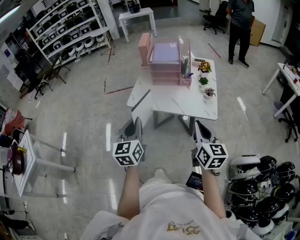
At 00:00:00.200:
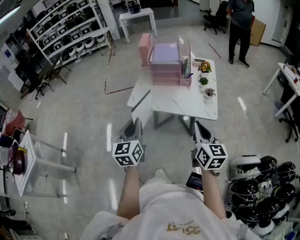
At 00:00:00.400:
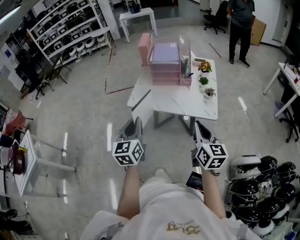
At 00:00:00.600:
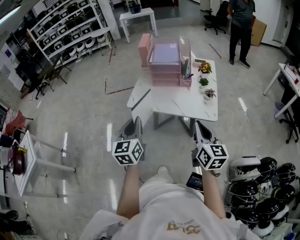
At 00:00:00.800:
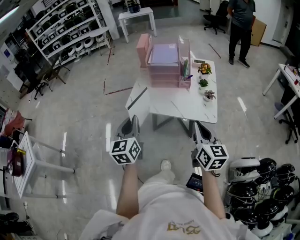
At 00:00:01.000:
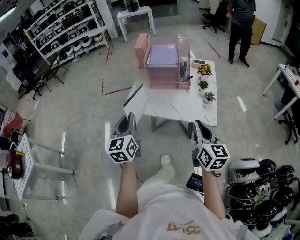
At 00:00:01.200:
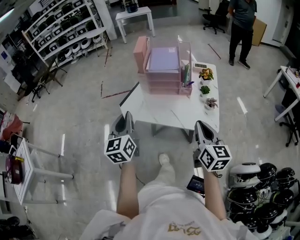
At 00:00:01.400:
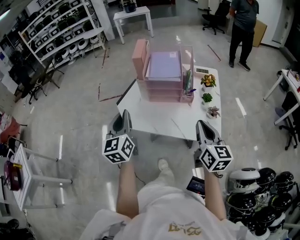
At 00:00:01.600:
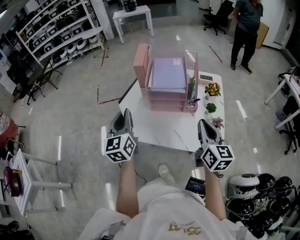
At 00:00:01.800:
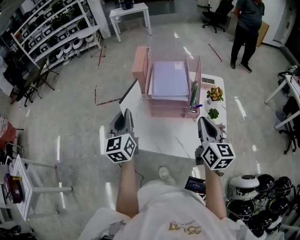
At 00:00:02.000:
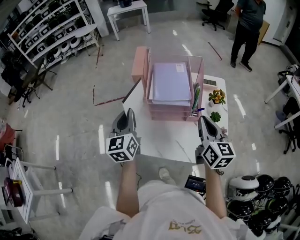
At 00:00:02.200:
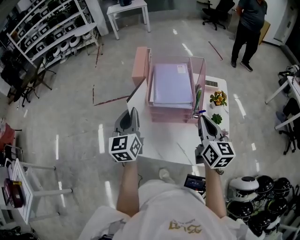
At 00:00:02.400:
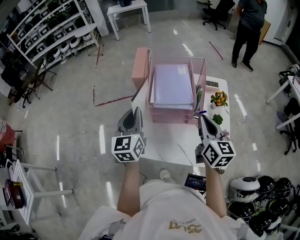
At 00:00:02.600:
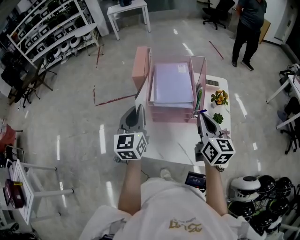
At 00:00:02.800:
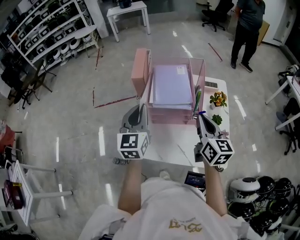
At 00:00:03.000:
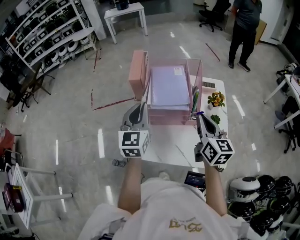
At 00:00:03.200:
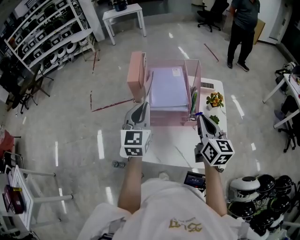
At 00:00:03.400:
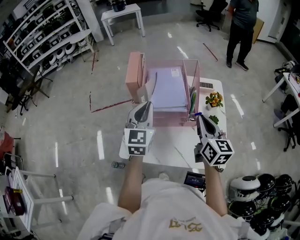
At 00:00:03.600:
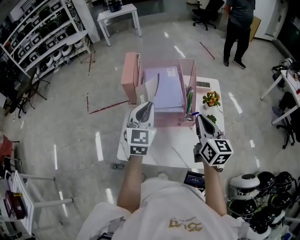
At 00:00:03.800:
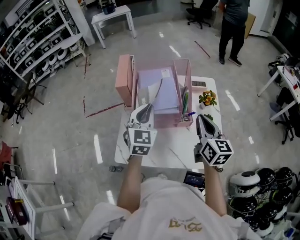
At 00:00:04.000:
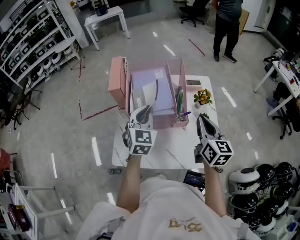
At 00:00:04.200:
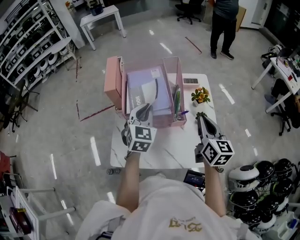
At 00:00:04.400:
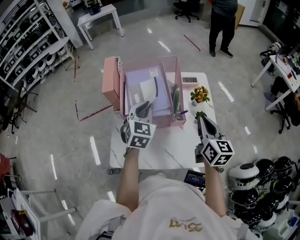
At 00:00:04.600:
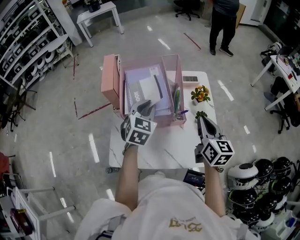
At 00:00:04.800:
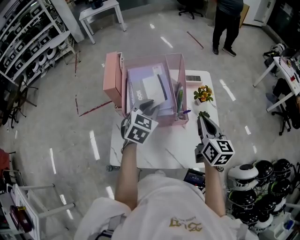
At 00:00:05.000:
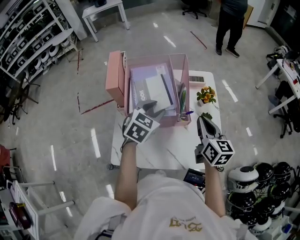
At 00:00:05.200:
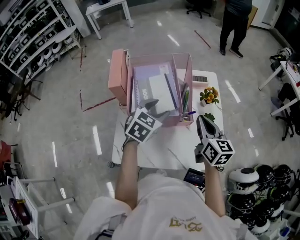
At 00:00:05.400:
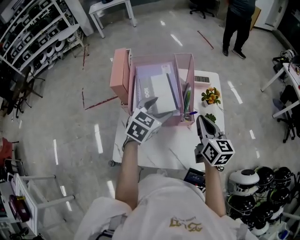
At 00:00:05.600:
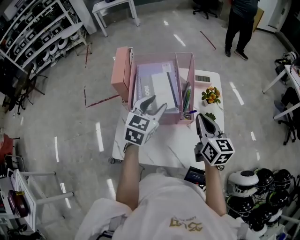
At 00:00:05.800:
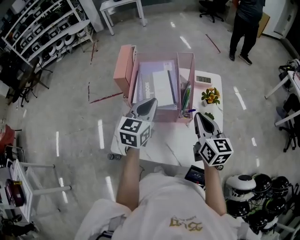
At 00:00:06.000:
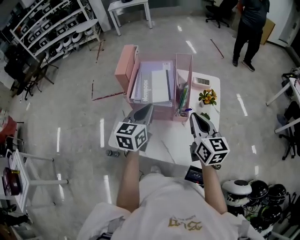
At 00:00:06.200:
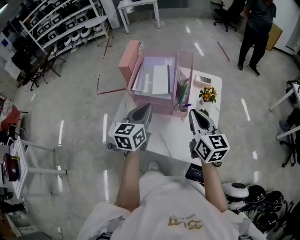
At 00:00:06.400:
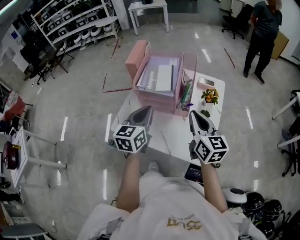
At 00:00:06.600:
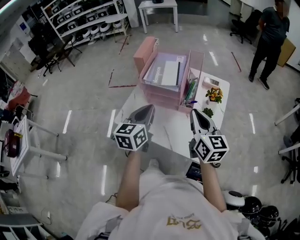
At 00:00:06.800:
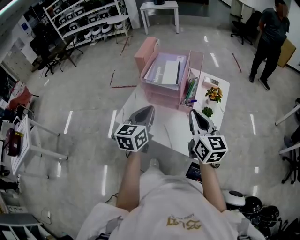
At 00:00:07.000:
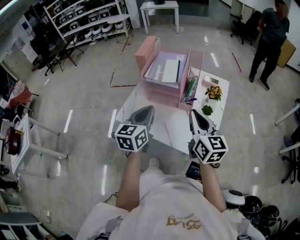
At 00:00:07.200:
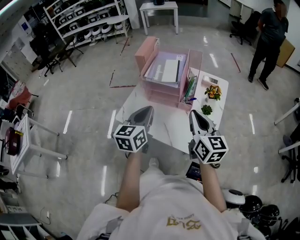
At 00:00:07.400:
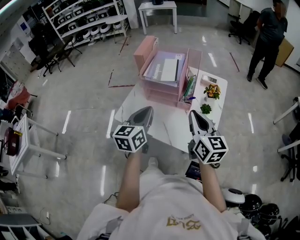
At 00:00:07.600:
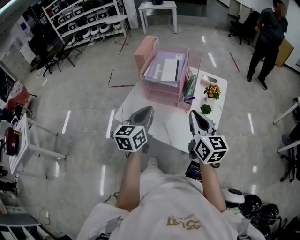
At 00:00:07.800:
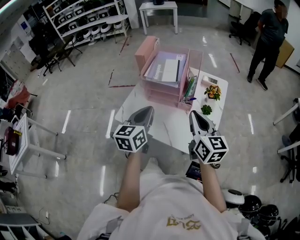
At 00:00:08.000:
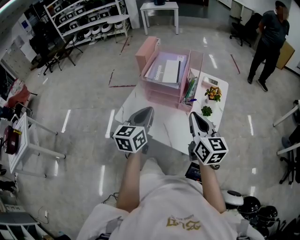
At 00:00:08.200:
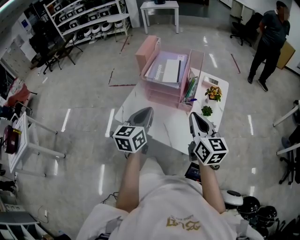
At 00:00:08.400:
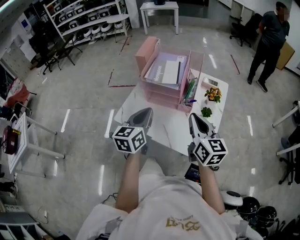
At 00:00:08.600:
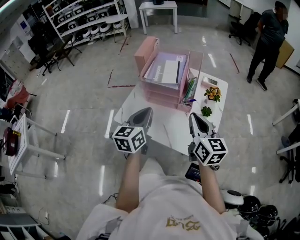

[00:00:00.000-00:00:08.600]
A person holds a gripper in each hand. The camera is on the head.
00:00:00.000 to 00:00:01.400: Both grippers move forward, approximately 20 cm.
00:00:01.400 to 00:00:02.800: Both grippers travel together forward, roughly 20 cm.
00:00:02.800 to 00:00:04.400: The left gripper travels to the right, forward and downward by some 15 cm, and turns by some 30 degrees; the right gripper travels to the right by about 10 cm.
00:00:04.400 to 00:00:05.800: The left gripper rotates some 20 degrees, and opens, then closes once more.
00:00:05.800 to 00:00:07.200: Both grippers move backward, some 15 cm. The left gripper turns by some 20 degrees.
00:00:07.200 to 00:00:08.600: Both grippers stay about where they are.

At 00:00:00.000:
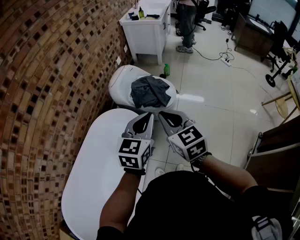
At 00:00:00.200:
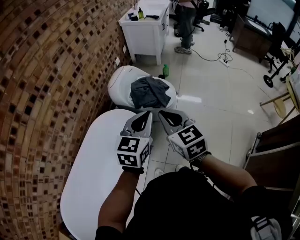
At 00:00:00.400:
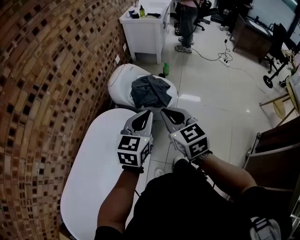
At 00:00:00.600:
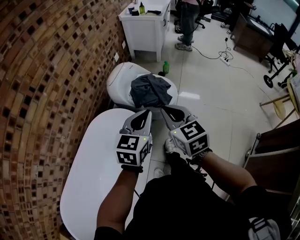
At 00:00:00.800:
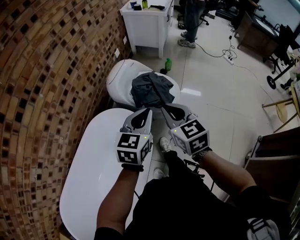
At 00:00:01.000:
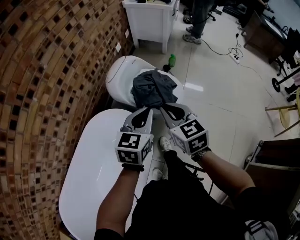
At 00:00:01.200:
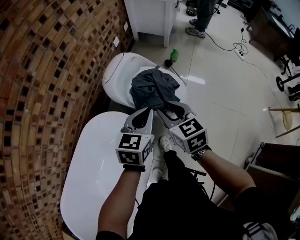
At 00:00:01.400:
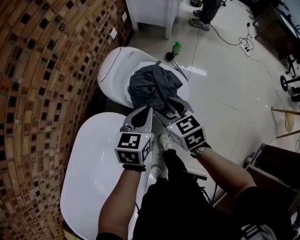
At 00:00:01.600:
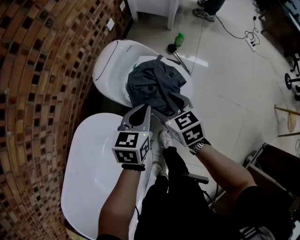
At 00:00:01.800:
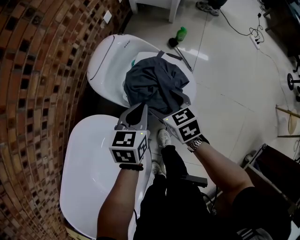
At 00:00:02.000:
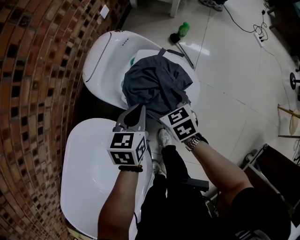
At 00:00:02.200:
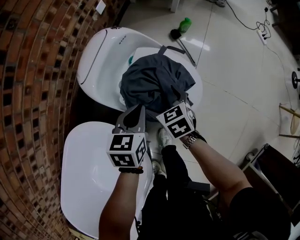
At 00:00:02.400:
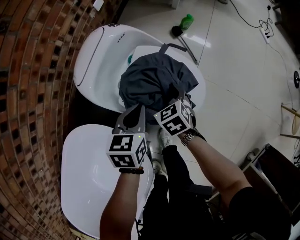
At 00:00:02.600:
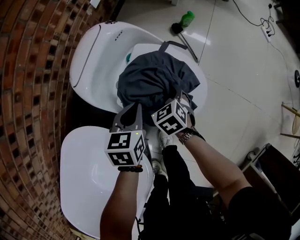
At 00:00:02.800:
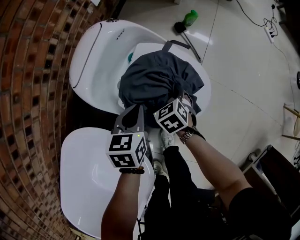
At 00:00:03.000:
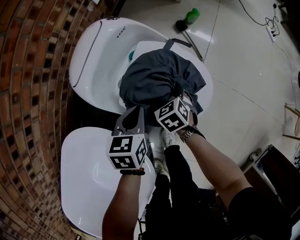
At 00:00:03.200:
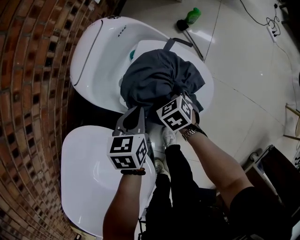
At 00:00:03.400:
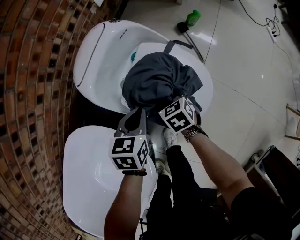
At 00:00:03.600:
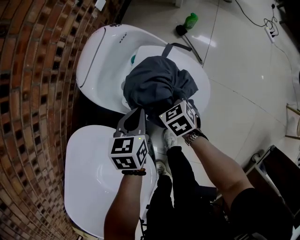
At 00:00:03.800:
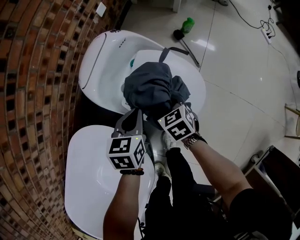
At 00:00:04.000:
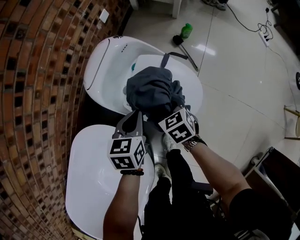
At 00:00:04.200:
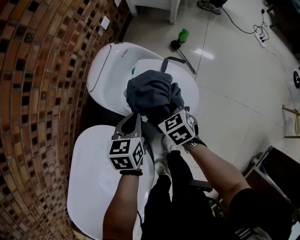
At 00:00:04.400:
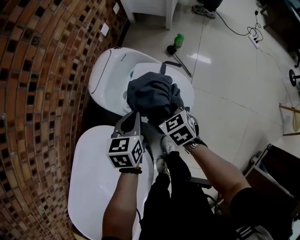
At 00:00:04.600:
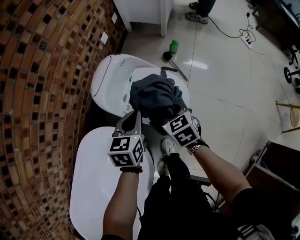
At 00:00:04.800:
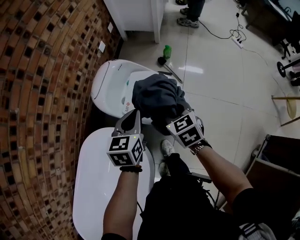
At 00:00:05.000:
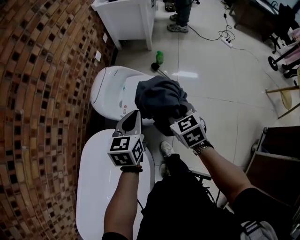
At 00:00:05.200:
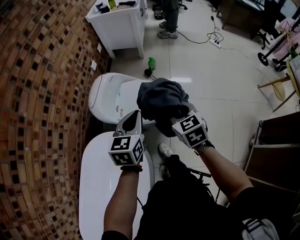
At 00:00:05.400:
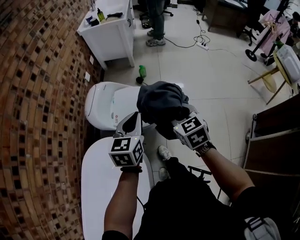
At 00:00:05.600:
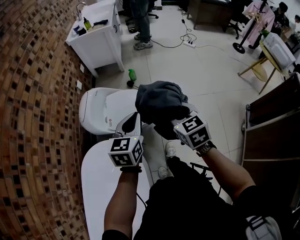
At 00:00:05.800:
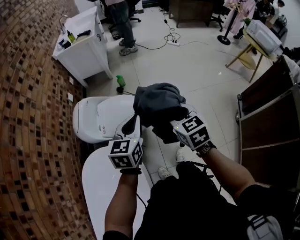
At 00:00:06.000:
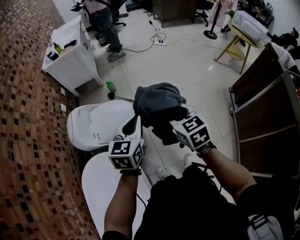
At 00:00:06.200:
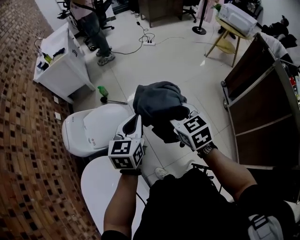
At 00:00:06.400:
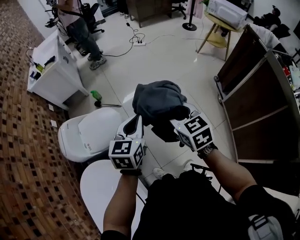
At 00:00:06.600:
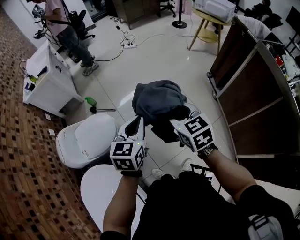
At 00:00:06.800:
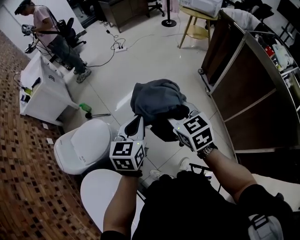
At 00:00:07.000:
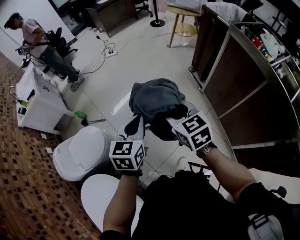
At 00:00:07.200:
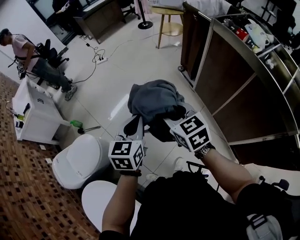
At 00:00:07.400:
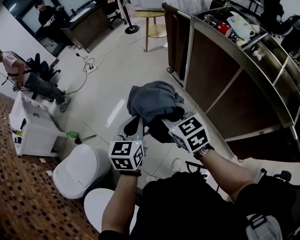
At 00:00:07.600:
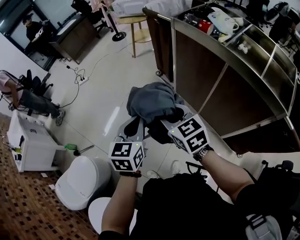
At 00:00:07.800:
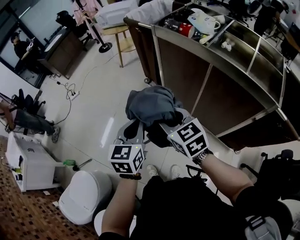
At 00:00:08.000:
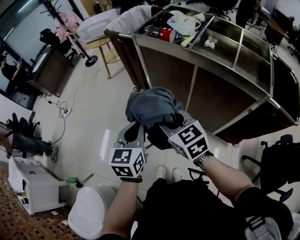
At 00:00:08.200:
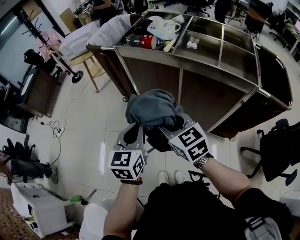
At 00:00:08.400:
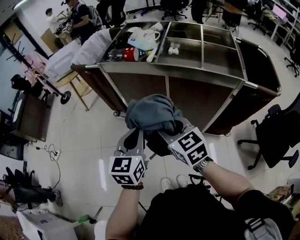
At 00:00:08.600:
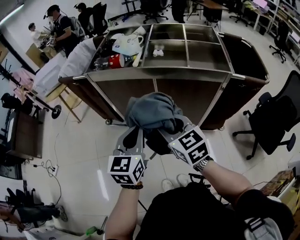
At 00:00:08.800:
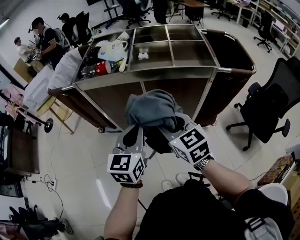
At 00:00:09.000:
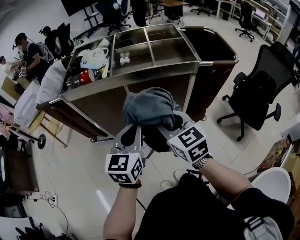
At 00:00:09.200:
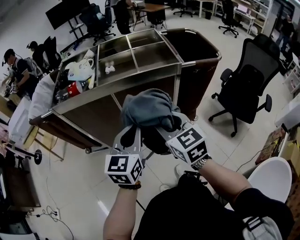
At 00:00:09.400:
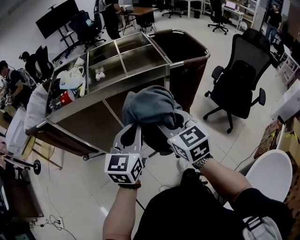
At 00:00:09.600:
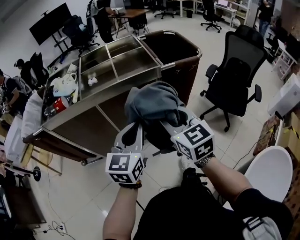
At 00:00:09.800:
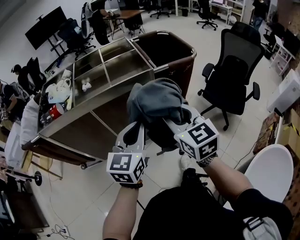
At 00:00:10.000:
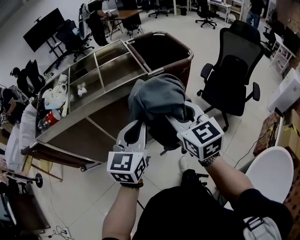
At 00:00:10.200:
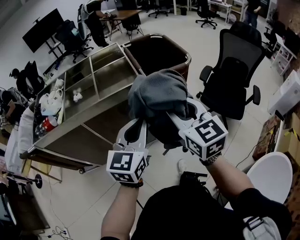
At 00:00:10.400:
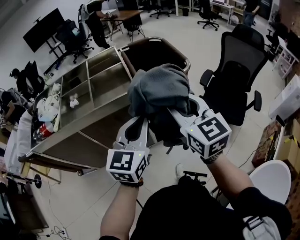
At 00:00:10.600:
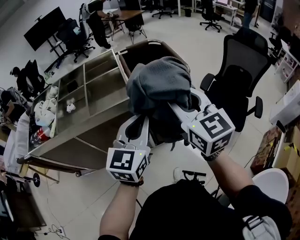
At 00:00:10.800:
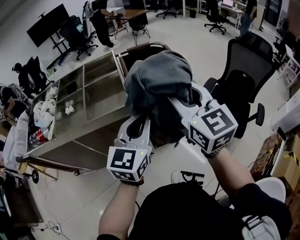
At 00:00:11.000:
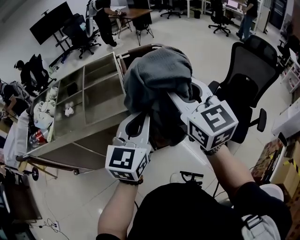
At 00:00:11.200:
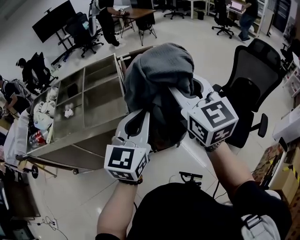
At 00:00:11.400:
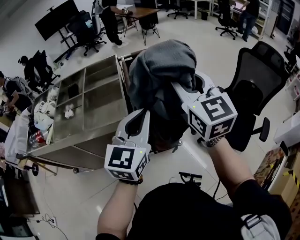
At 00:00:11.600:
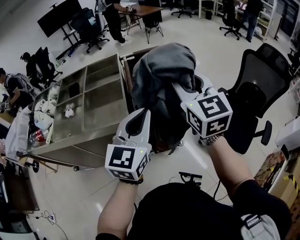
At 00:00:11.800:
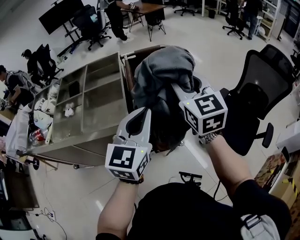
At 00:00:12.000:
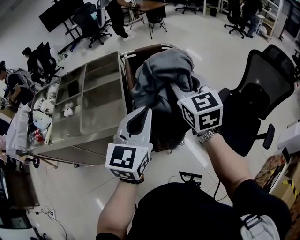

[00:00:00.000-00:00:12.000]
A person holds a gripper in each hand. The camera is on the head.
00:00:00.000 to 00:00:01.600: The pair of grippers is taken forward, some 70 cm. The left gripper turns by about 40 degrees, while the right gripper is displaced downward by about 30 cm, angles its fingers downward, by roughly 30 degrees, and opens up.
00:00:01.600 to 00:00:03.000: Both grippers move downward, approximately 35 cm. The right gripper tips its fingers downward by roughly 30 degrees.
00:00:03.000 to 00:00:04.400: Both grippers move upward, about 30 cm. The right gripper closes up.
00:00:04.400 to 00:00:06.000: The two grippers travel together, roughly 50 cm. The left gripper swivels some 50 degrees. Meanwhile the right gripper turns by approximately 40 degrees.
00:00:06.000 to 00:00:07.600: The pair of grippers is taken roughly 50 cm. The left gripper changes its angle by roughly 40 degrees. Meanwhile the right gripper changes its angle by roughly 40 degrees.
00:00:07.600 to 00:00:09.000: The right gripper changes place by roughly 25 cm, and rotates about 50 degrees; the left gripper moves about 30 cm, and changes its angle by some 50 degrees.
00:00:09.000 to 00:00:10.400: Both grippers move to the right, approximately 30 cm. The right gripper changes its angle by some 20 degrees; the left gripper changes its angle by roughly 20 degrees.
00:00:10.400 to 00:00:12.000: The two grippers go approximately 30 cm forward and to the right.

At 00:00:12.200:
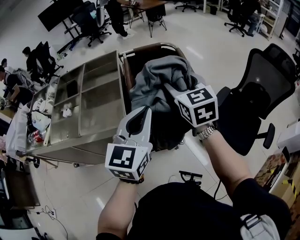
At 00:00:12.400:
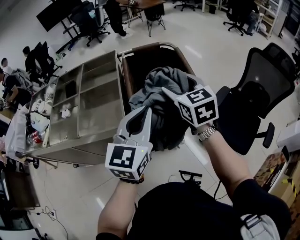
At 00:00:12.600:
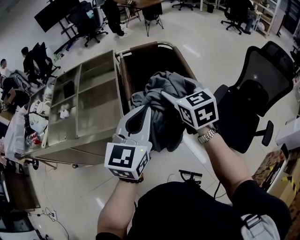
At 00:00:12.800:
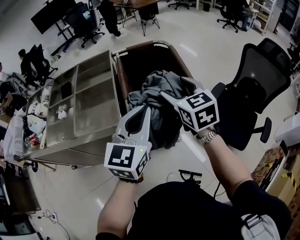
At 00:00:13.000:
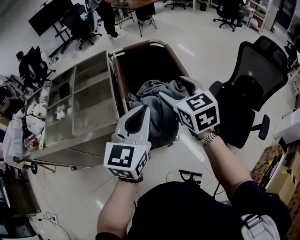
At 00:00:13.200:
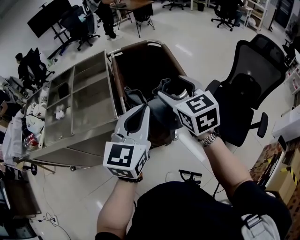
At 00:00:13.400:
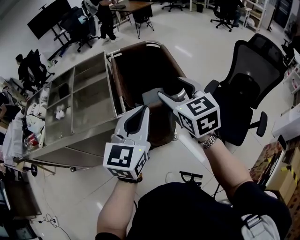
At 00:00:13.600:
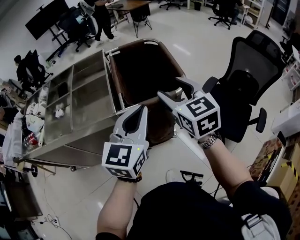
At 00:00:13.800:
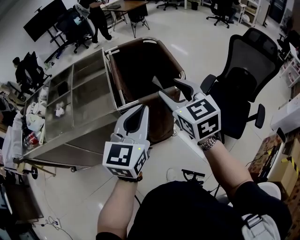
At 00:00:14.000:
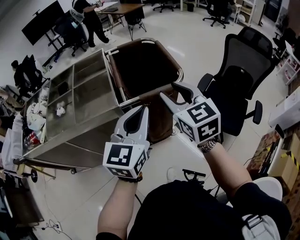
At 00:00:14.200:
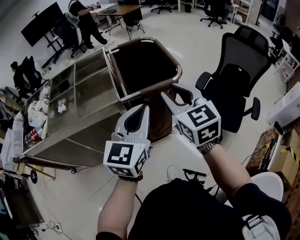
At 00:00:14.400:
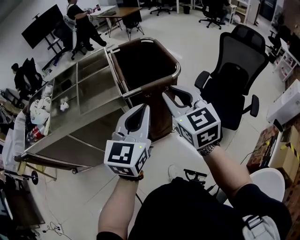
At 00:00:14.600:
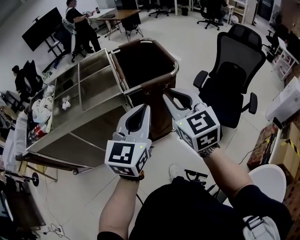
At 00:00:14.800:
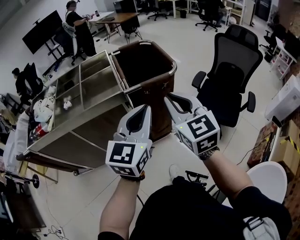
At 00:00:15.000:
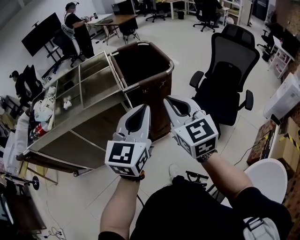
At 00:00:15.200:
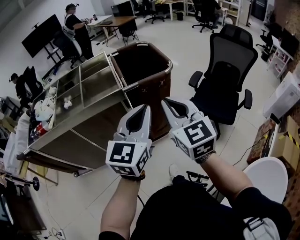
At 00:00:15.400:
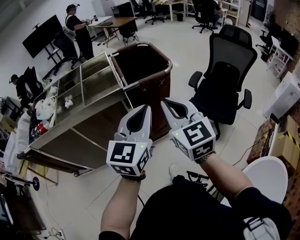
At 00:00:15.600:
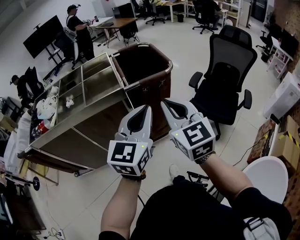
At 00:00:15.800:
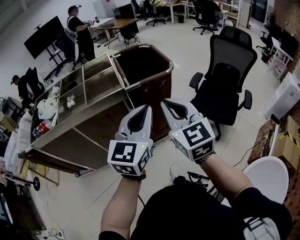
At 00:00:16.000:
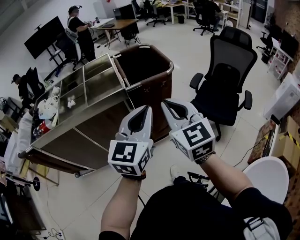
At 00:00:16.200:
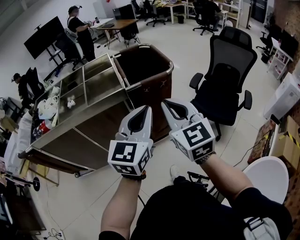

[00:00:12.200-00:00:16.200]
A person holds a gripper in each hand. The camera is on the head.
00:00:12.200 to 00:00:13.600: The left gripper moves backward, about 5 cm, while the right gripper heads backward, covering about 10 cm.
00:00:13.600 to 00:00:14.800: The two grippers go roughly 20 cm backward. The right gripper closes up.
00:00:14.800 to 00:00:16.200: The grippers both shift backward by about 5 cm.
